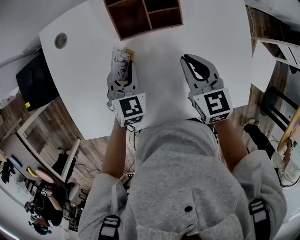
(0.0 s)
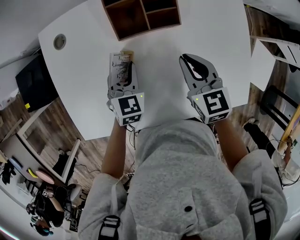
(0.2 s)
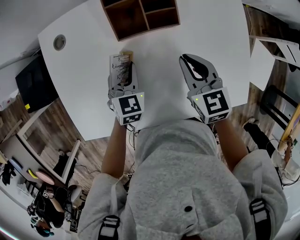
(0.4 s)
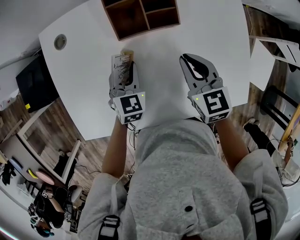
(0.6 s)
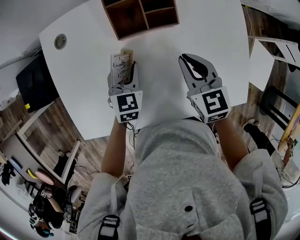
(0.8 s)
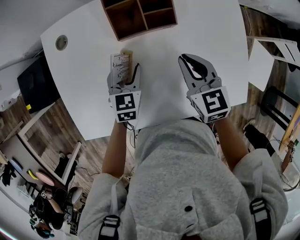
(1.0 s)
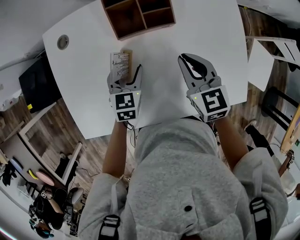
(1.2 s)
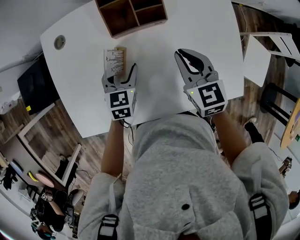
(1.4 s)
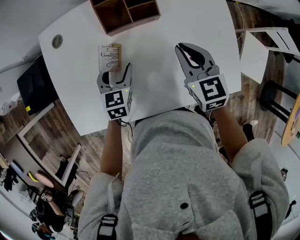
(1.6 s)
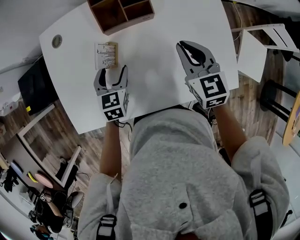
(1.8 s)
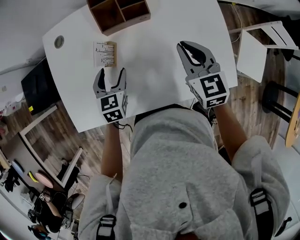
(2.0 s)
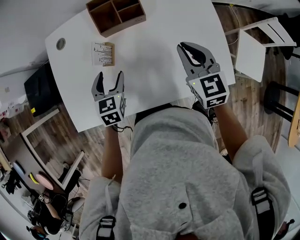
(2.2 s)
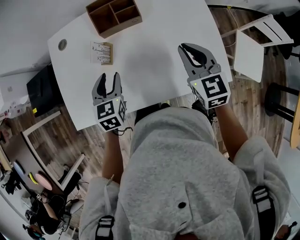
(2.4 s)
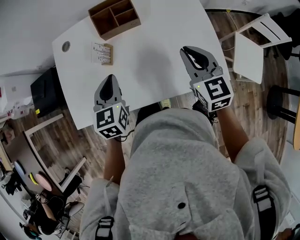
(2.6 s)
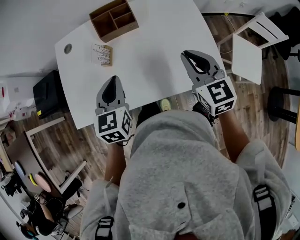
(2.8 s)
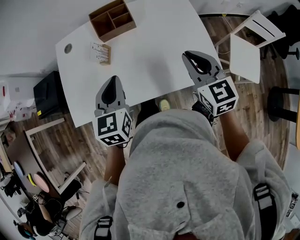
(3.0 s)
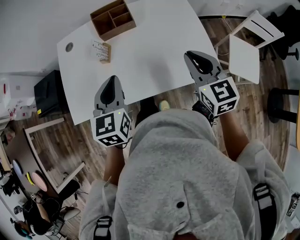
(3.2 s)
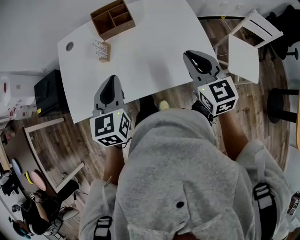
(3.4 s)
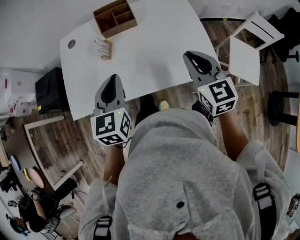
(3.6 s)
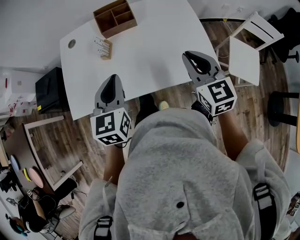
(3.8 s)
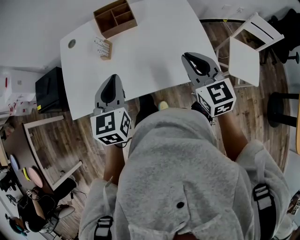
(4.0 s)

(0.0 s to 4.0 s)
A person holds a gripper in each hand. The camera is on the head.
0.0 s - 1.4 s: The left gripper opens up.
1.4 s - 2.6 s: The left gripper moves upward and backward, some 20 cm, and closes up. Meanwhile the right gripper shifts approximately 15 cm backward, to the right and upward.
2.6 s - 4.0 s: The right gripper travels backward by roughly 10 cm; the left gripper heads backward and upward, covering roughly 10 cm.

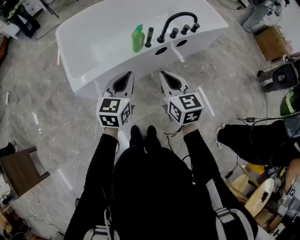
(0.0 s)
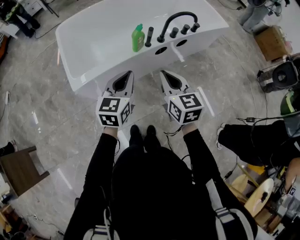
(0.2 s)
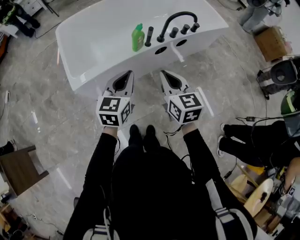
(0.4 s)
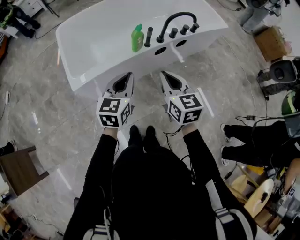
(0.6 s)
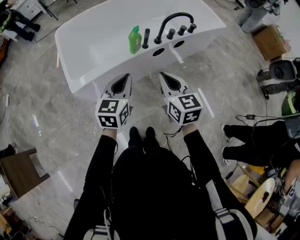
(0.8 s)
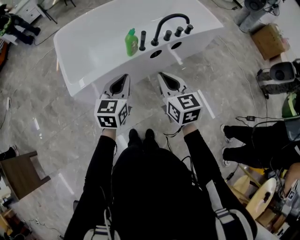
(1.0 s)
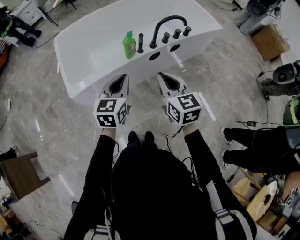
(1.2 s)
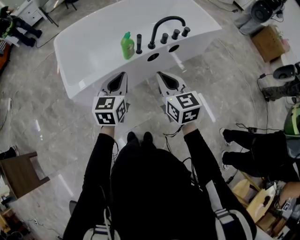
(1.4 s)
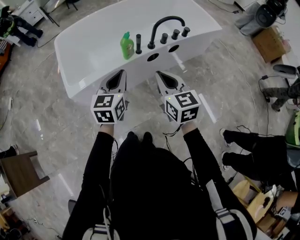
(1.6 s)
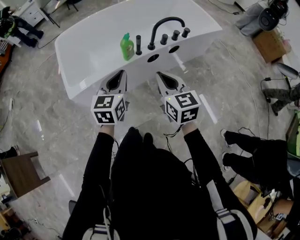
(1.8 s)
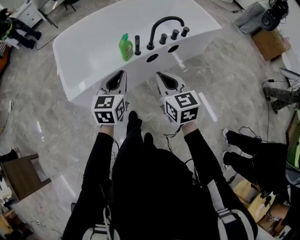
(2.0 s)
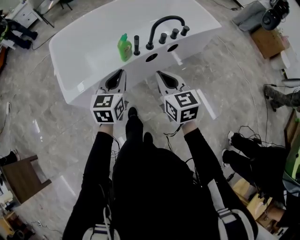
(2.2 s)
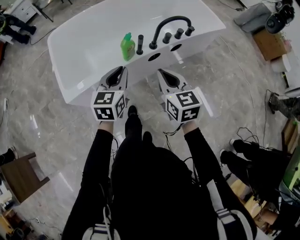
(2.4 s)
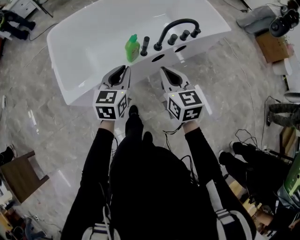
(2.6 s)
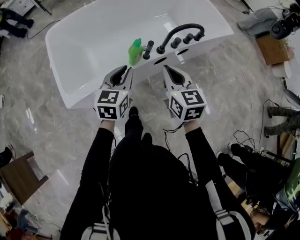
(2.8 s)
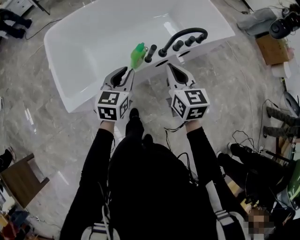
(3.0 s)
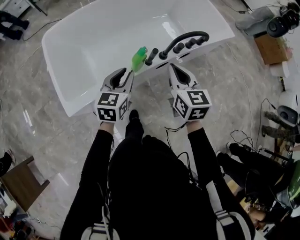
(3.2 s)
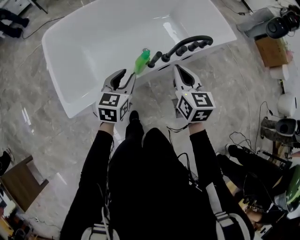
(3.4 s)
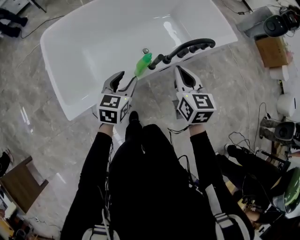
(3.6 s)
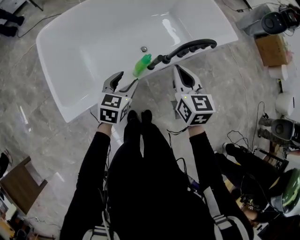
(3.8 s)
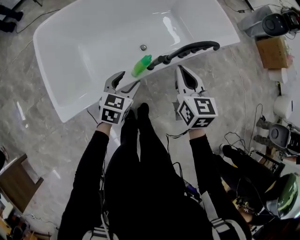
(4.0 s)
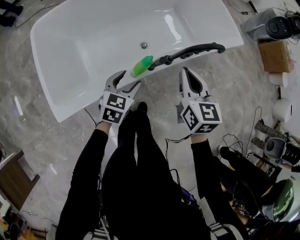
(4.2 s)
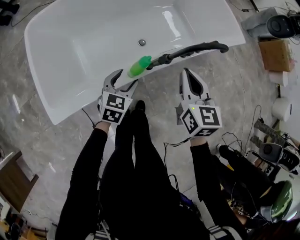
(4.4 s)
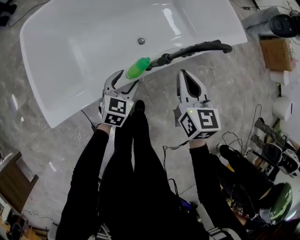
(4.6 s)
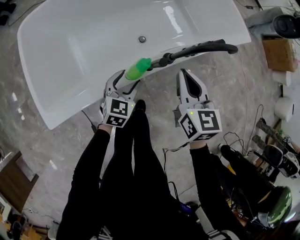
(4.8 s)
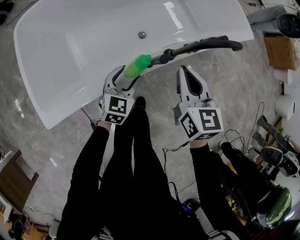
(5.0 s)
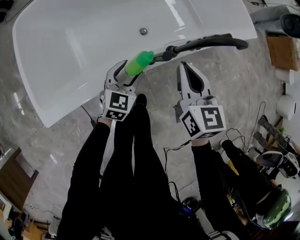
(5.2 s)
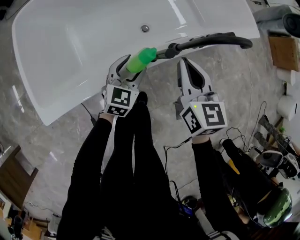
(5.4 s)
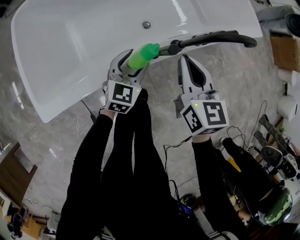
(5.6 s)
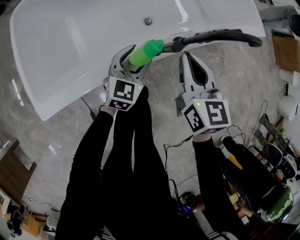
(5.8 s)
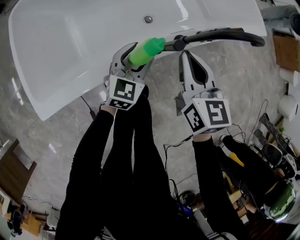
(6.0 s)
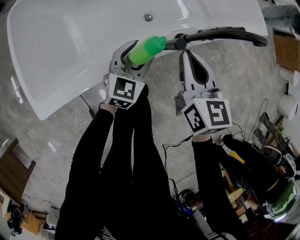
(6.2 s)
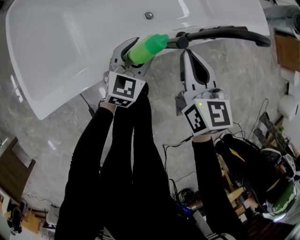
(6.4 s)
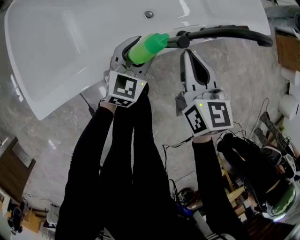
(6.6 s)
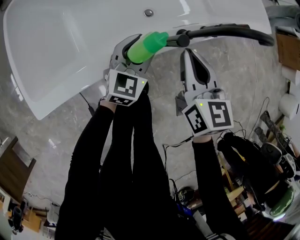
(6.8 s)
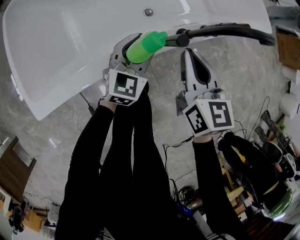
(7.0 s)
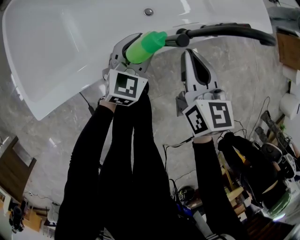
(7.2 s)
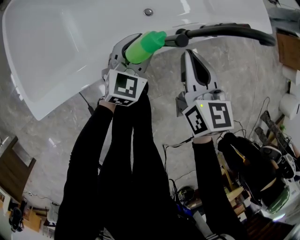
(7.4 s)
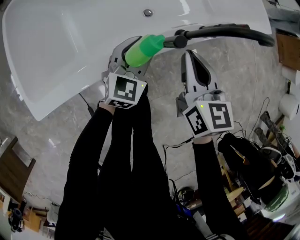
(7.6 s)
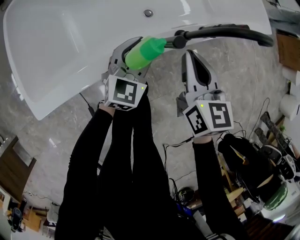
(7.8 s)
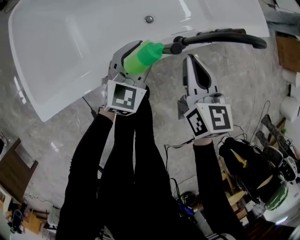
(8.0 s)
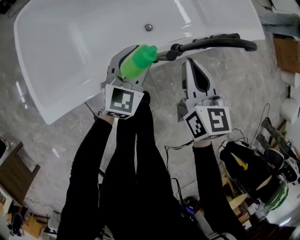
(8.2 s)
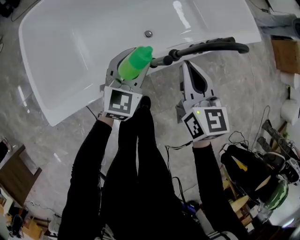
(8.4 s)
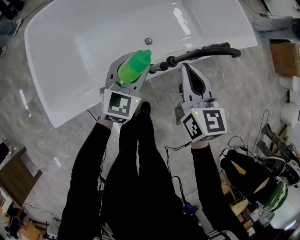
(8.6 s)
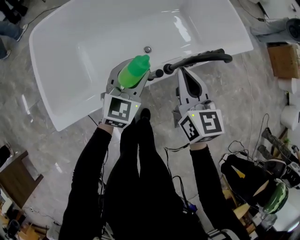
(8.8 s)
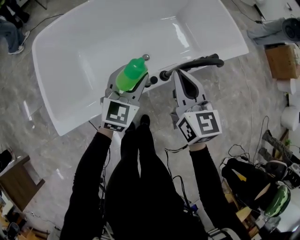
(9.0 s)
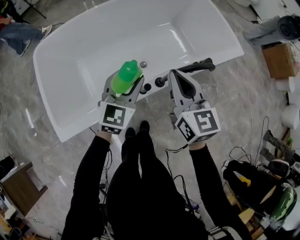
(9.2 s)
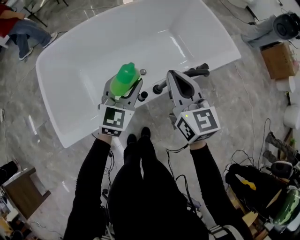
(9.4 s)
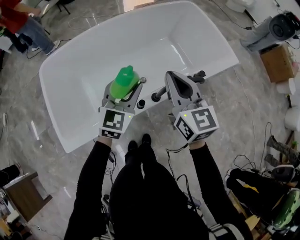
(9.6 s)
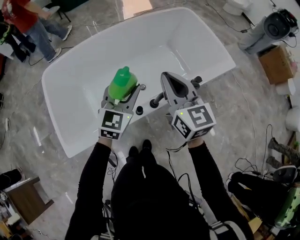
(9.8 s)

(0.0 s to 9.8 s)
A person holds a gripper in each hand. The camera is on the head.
0.0 s - 1.4 s: The right gripper ends up about 5 cm from where it was.
1.4 s - 2.8 s: The two grippers go approximately 15 cm forward.
2.8 s - 4.2 s: The right gripper travels forward by approximately 10 cm. The left gripper goes some 15 cm downward and forward, and opens its fingers.
4.2 s - 5.6 s: The right gripper travels downward by roughly 10 cm; the left gripper travels downward and forward by approximately 10 cm.
5.6 s - 7.0 s: The grippers stay close to where they were, moving slightly.
7.0 s - 8.4 s: The two grippers go about 10 cm upward.
8.4 s - 9.8 s: The left gripper heads upward, covering some 15 cm. Meanwhile the right gripper is displaced upward and forward by approximately 20 cm.

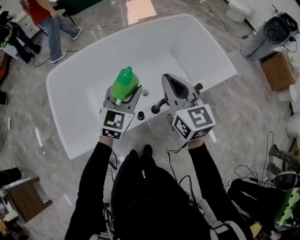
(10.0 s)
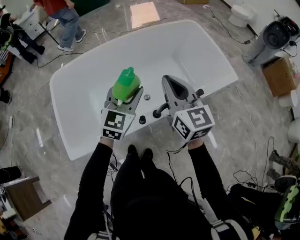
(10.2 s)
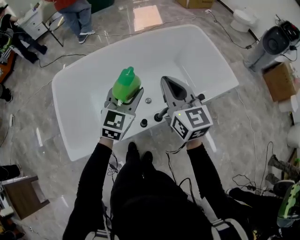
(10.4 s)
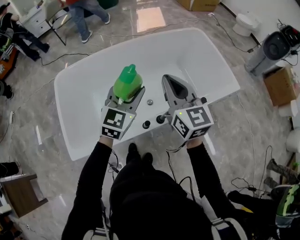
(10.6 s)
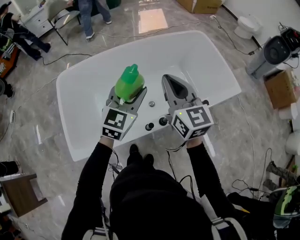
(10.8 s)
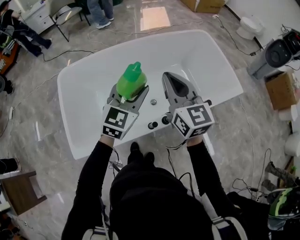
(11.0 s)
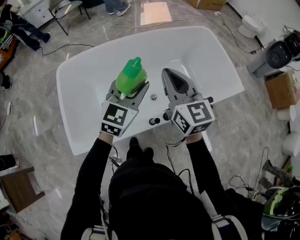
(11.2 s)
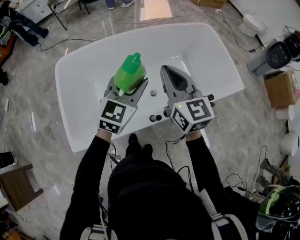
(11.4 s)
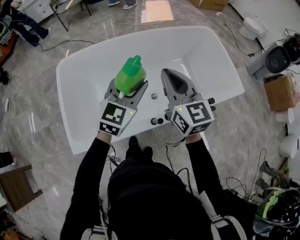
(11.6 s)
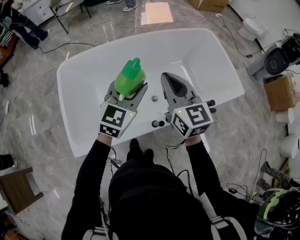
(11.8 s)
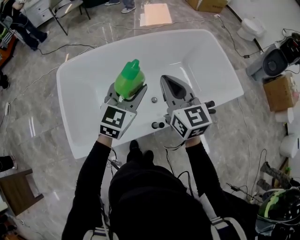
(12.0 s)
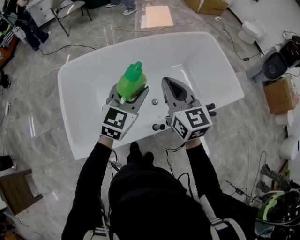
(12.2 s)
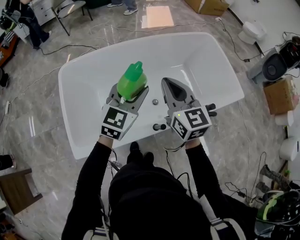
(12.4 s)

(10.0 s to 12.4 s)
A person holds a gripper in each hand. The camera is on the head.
10.0 s - 11.2 s: The right gripper goes roughly 10 cm to the left. Meanwhile the left gripper is displaced to the left and upward by approximately 10 cm.
11.2 s - 12.4 s: The grippers make only small movements.

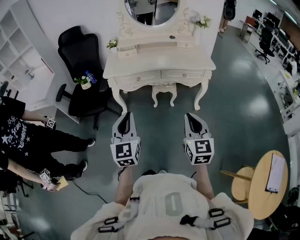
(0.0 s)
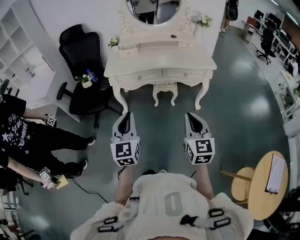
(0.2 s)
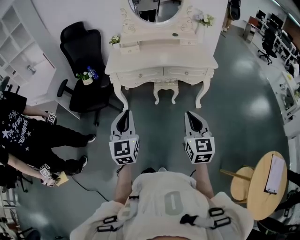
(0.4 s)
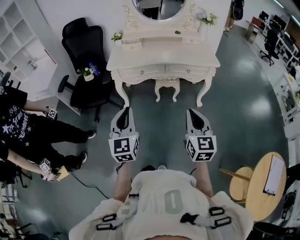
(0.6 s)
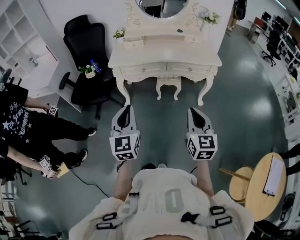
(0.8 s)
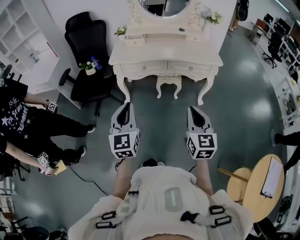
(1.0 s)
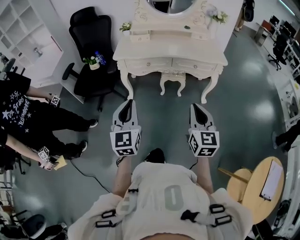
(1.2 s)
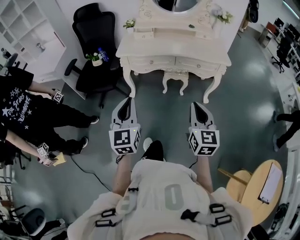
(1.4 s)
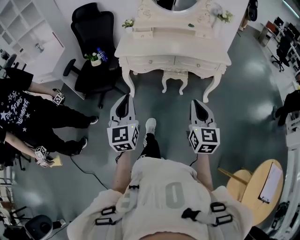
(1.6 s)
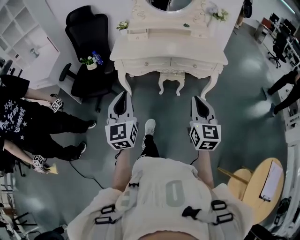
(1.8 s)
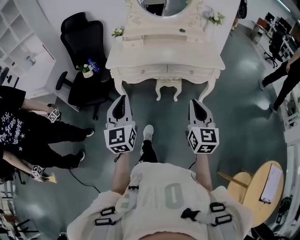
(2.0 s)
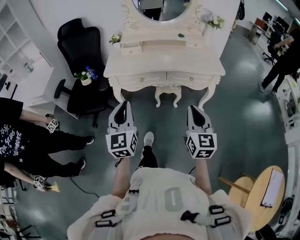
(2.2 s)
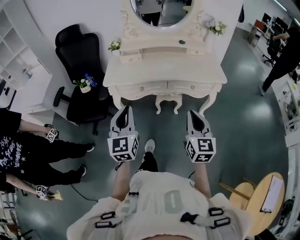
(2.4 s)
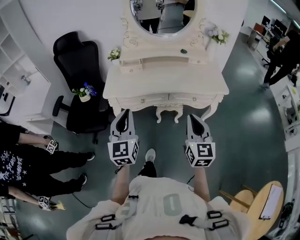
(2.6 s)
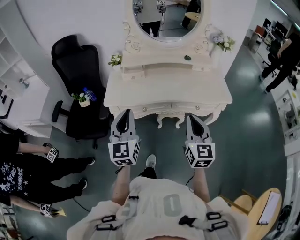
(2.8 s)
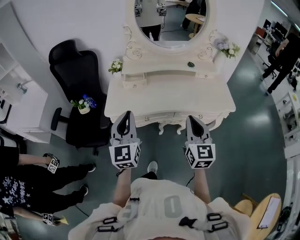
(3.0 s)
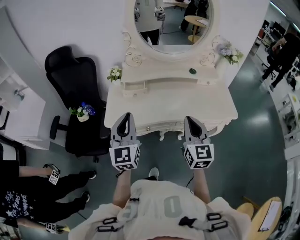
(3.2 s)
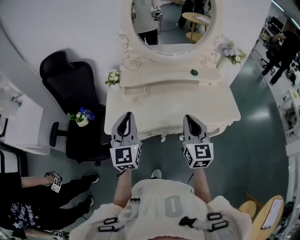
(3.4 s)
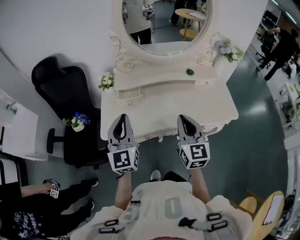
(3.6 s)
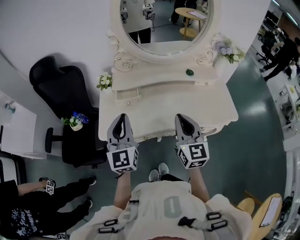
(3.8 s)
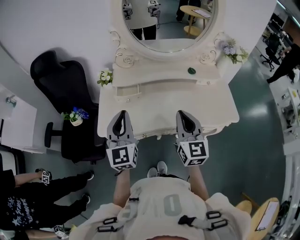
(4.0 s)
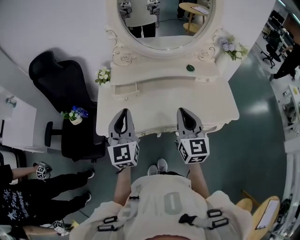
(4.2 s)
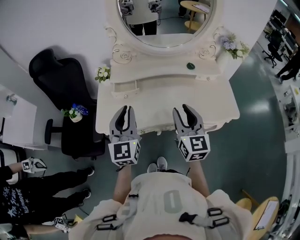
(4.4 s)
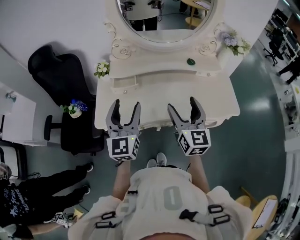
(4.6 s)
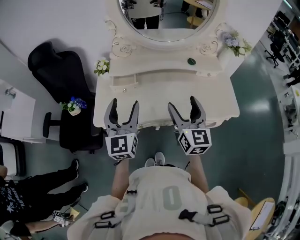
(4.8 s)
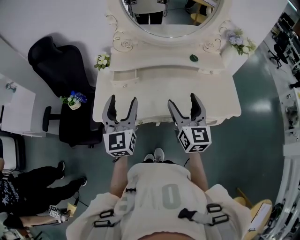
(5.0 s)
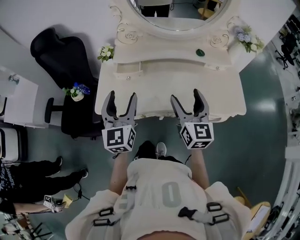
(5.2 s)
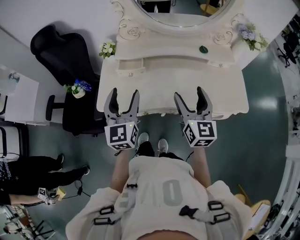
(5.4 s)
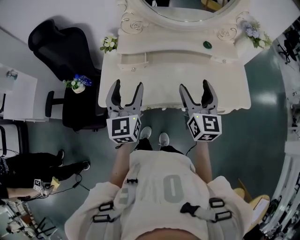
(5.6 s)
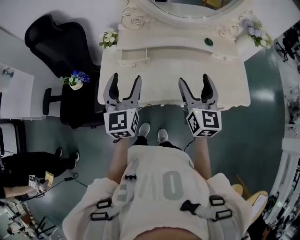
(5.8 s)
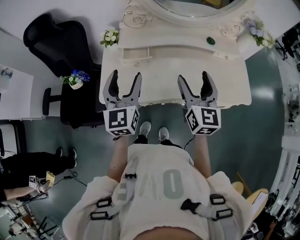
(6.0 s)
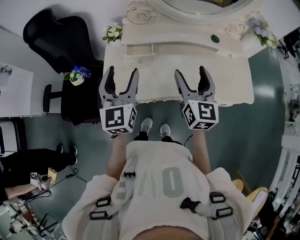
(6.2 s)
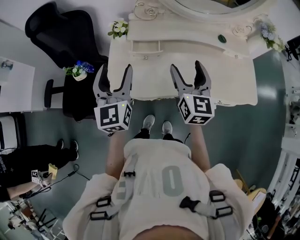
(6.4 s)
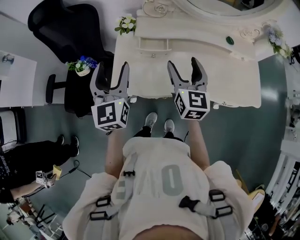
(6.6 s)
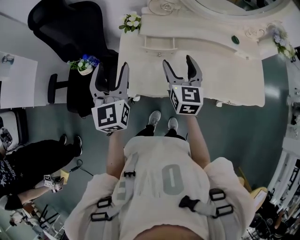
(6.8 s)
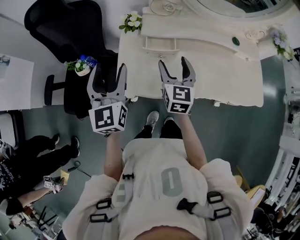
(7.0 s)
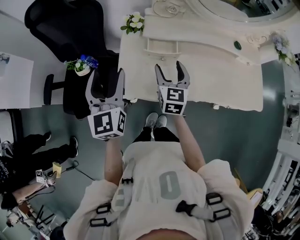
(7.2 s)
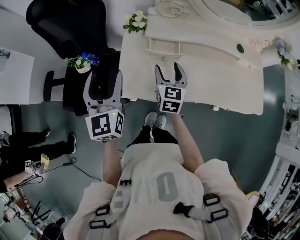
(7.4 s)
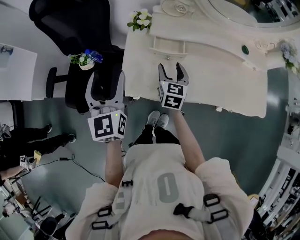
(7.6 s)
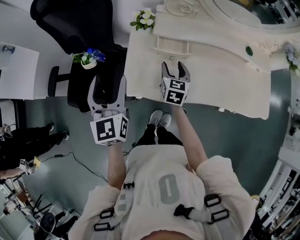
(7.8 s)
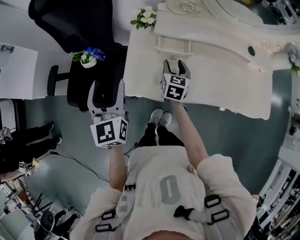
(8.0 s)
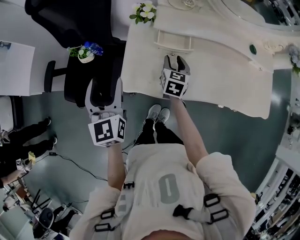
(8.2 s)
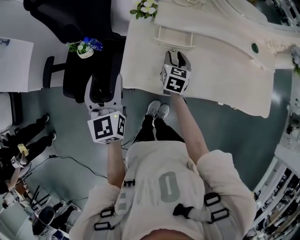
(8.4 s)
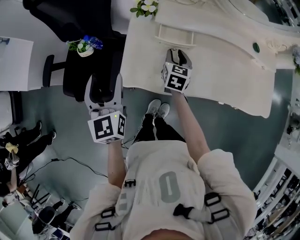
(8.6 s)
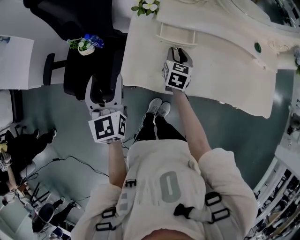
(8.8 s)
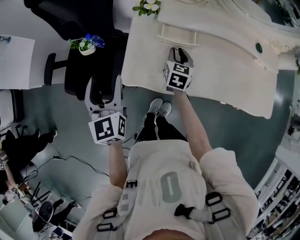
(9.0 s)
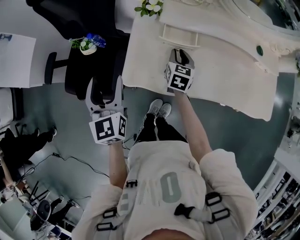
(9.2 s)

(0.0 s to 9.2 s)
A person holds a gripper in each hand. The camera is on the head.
0.0 s - 1.6 s: The grippers stay close to where they were, moving slightly.
1.6 s - 3.0 s: Both grippers move forward, some 35 cm.
3.0 s - 4.6 s: The two grippers go some 20 cm forward. The left gripper opens. The right gripper opens.
4.6 s - 6.2 s: Both grippers travel together to the left and forward, some 10 cm.
6.2 s - 7.6 s: The left gripper moves to the left, about 15 cm, while the right gripper shifts about 30 cm to the left, downward and forward.
7.6 s - 9.2 s: The two grippers go roughly 5 cm downward. The right gripper closes.
